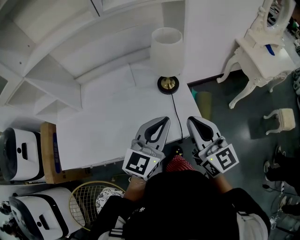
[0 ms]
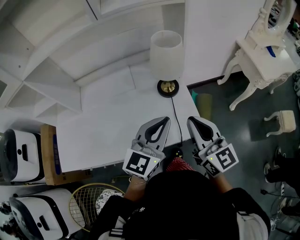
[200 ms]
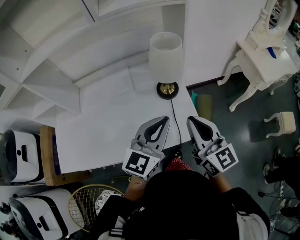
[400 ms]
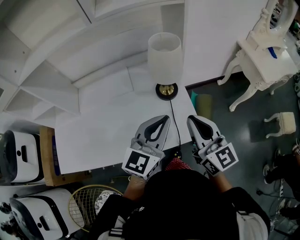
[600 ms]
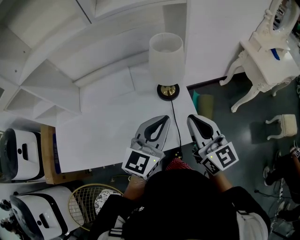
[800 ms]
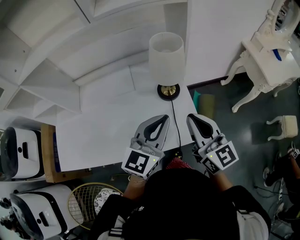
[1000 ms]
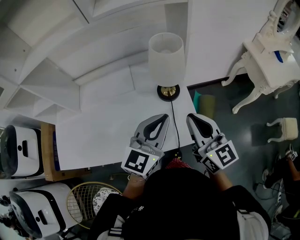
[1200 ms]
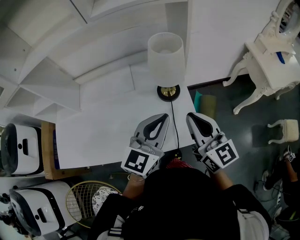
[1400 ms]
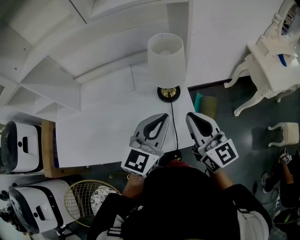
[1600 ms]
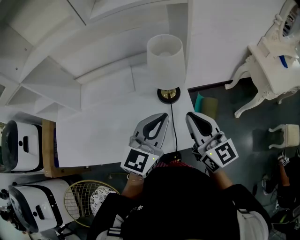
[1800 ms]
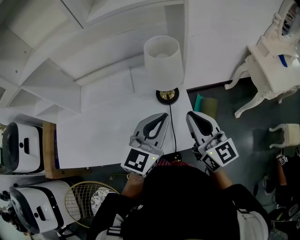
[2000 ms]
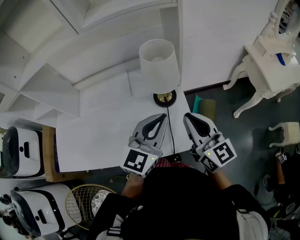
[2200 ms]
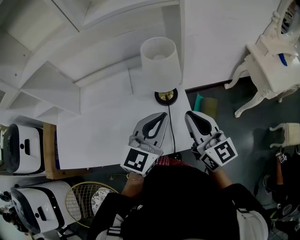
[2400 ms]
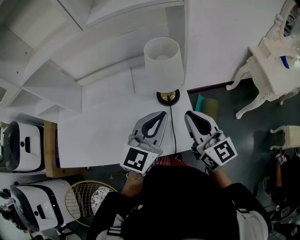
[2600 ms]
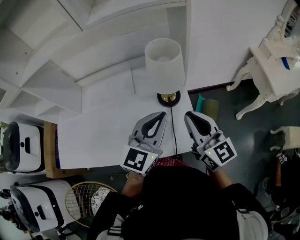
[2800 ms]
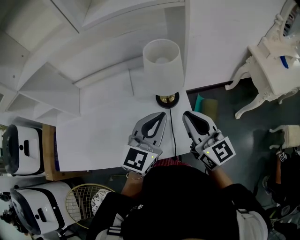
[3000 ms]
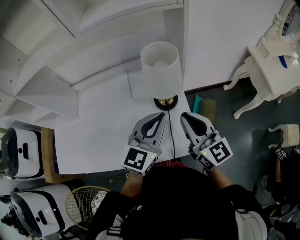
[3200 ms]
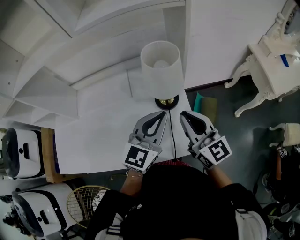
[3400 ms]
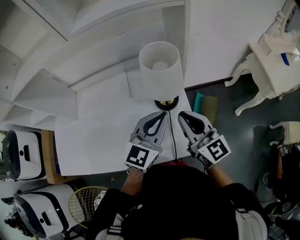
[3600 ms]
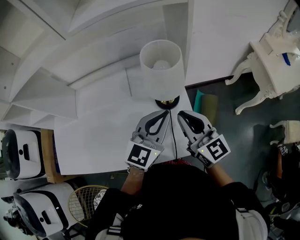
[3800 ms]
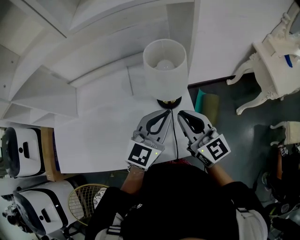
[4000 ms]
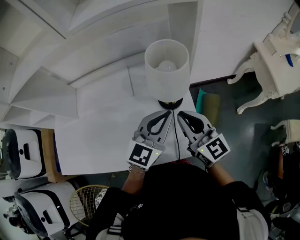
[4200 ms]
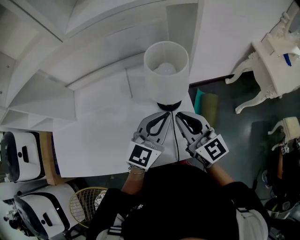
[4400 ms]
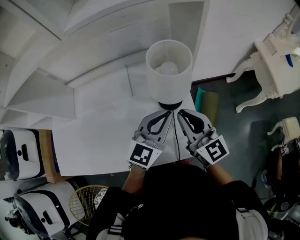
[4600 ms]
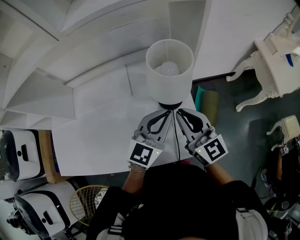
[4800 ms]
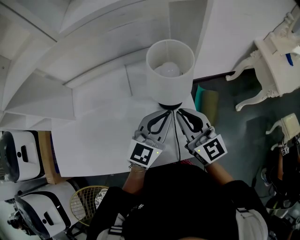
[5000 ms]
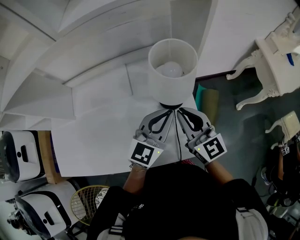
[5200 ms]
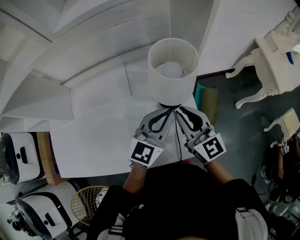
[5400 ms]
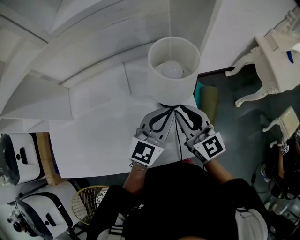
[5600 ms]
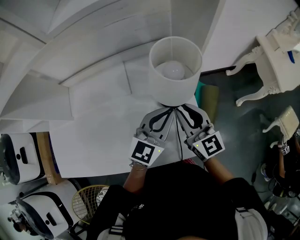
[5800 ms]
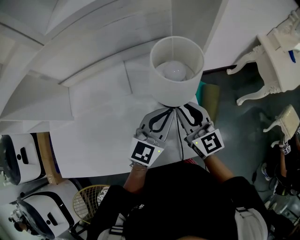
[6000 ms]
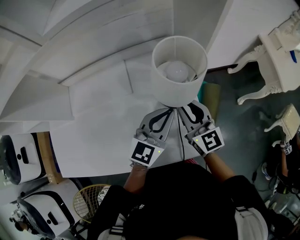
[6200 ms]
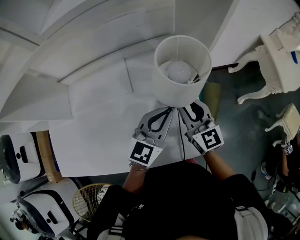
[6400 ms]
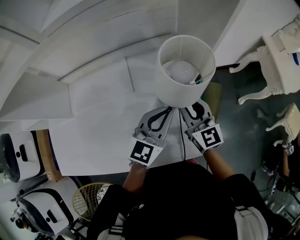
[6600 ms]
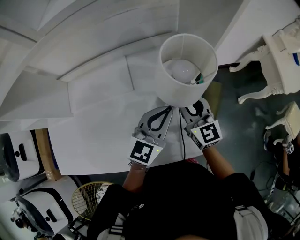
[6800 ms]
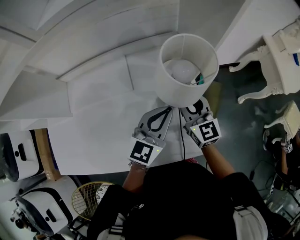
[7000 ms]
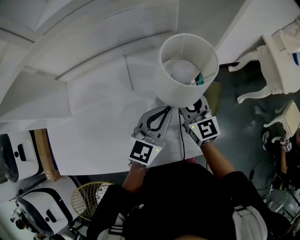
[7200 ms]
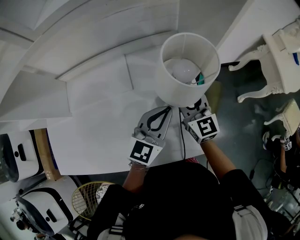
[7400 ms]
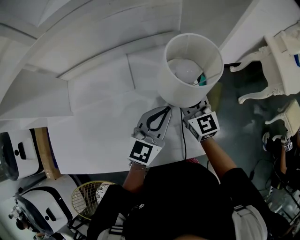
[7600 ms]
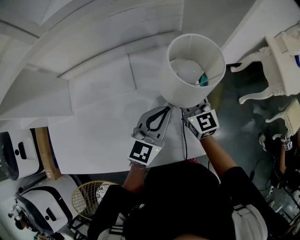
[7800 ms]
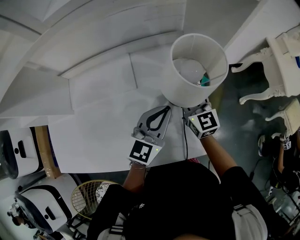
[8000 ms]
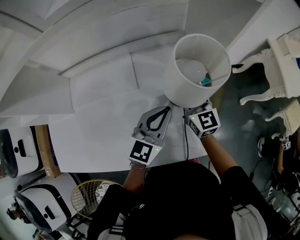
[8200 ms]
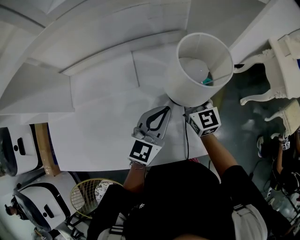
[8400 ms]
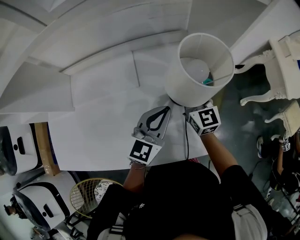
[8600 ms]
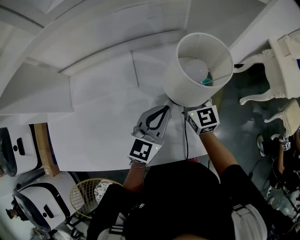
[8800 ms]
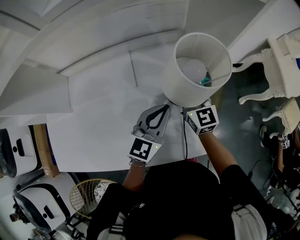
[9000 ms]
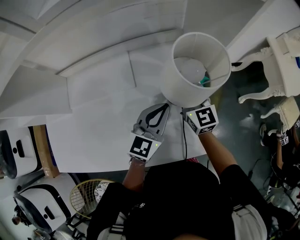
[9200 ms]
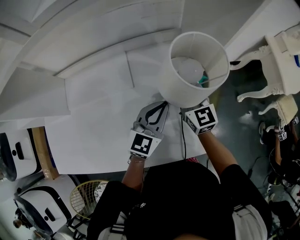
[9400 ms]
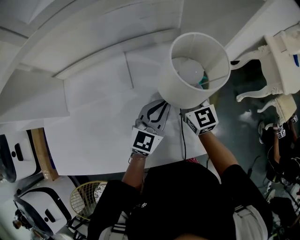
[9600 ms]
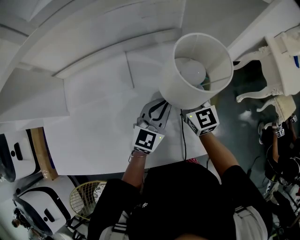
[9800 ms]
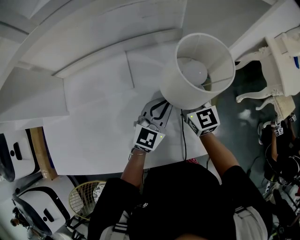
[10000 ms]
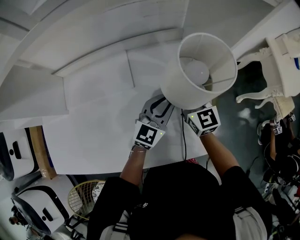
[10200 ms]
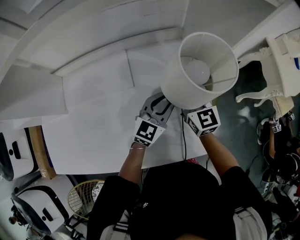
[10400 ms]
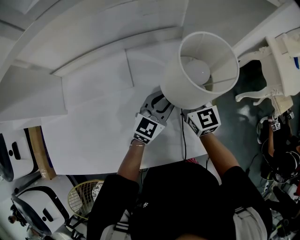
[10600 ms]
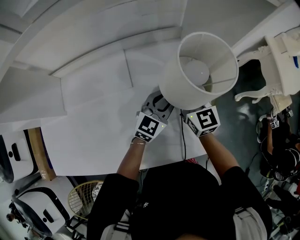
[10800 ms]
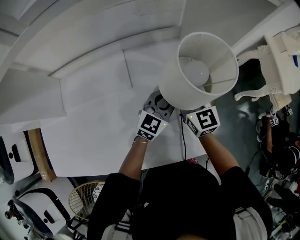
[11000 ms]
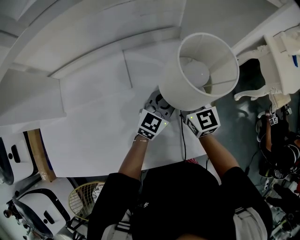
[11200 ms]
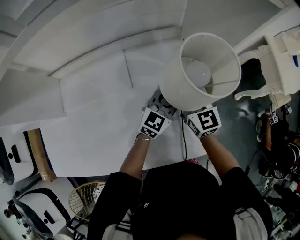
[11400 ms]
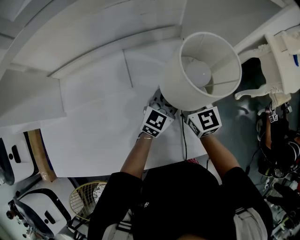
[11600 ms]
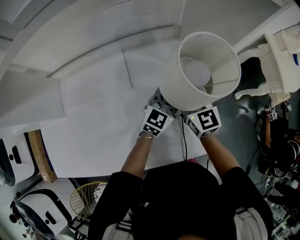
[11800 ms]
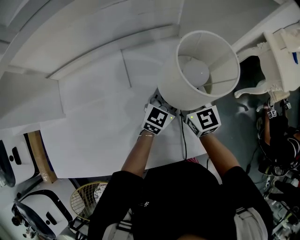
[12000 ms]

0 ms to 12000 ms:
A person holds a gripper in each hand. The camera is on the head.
0 ms to 1600 ms: The two grippers go some 10 cm forward.
1600 ms to 3000 ms: There are only small adjustments of the grippers.
3000 ms to 4400 ms: The left gripper shifts approximately 5 cm forward, while the right gripper moves some 5 cm.
4400 ms to 6000 ms: The right gripper heads downward, covering roughly 5 cm.
6000 ms to 7600 ms: The right gripper moves forward and downward, about 10 cm.
7600 ms to 9000 ms: The grippers move only a little.
9000 ms to 10400 ms: The left gripper shifts about 5 cm downward.
10400 ms to 12000 ms: The left gripper moves roughly 5 cm.

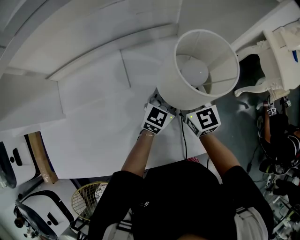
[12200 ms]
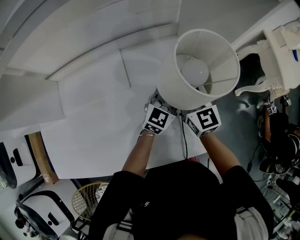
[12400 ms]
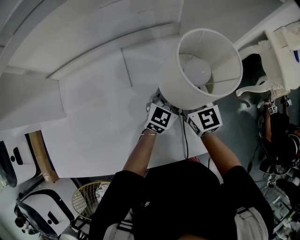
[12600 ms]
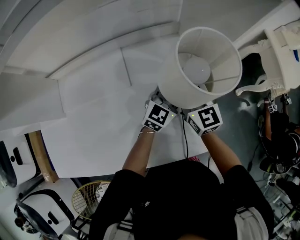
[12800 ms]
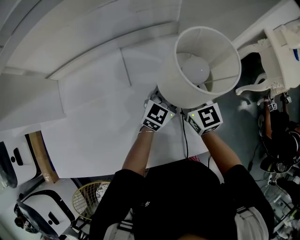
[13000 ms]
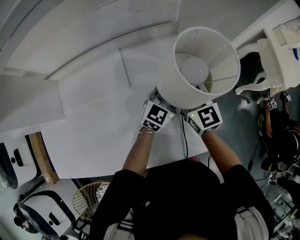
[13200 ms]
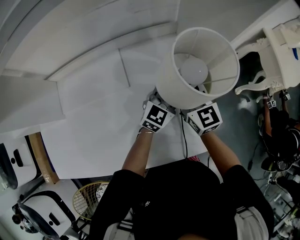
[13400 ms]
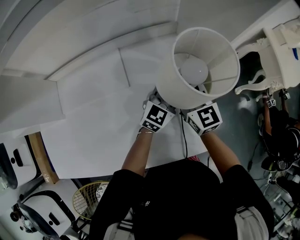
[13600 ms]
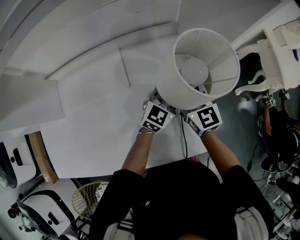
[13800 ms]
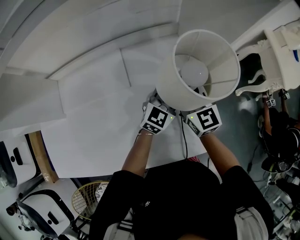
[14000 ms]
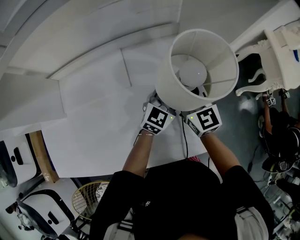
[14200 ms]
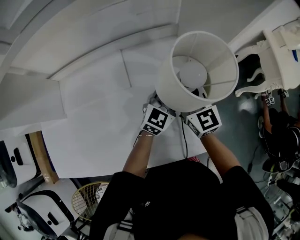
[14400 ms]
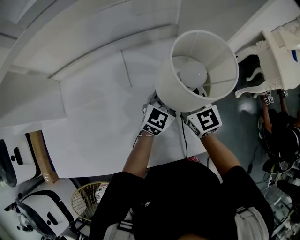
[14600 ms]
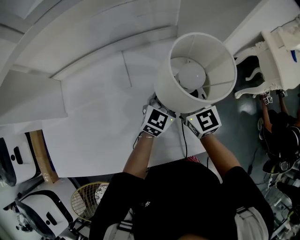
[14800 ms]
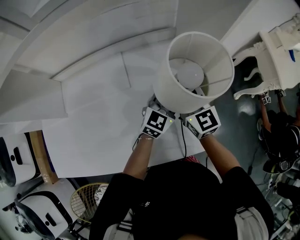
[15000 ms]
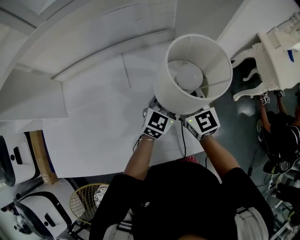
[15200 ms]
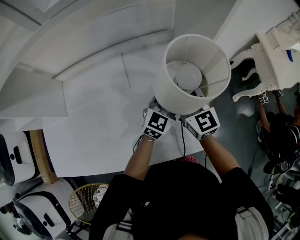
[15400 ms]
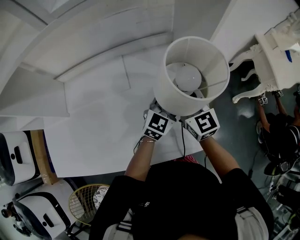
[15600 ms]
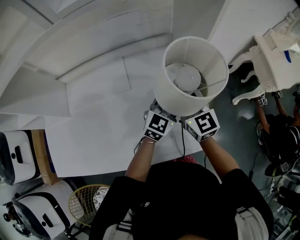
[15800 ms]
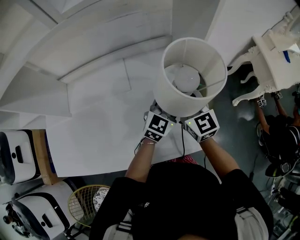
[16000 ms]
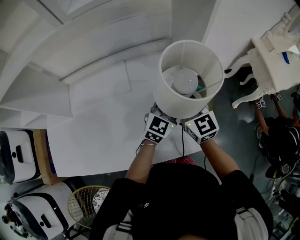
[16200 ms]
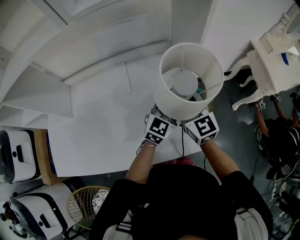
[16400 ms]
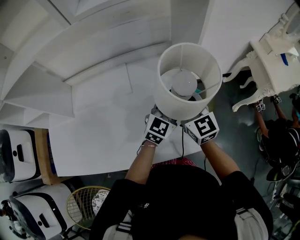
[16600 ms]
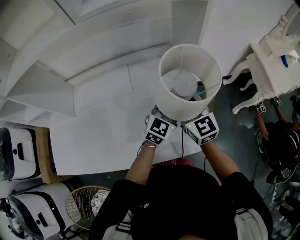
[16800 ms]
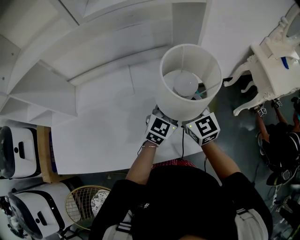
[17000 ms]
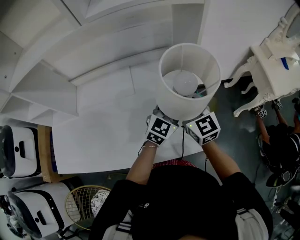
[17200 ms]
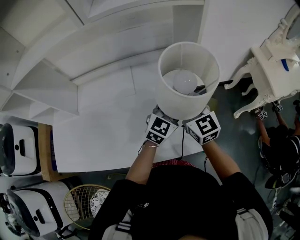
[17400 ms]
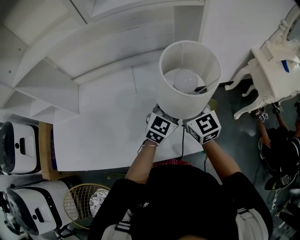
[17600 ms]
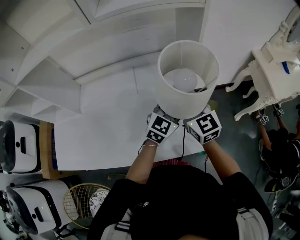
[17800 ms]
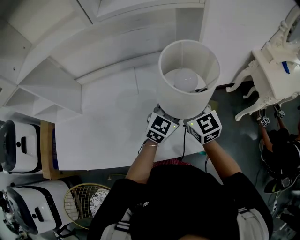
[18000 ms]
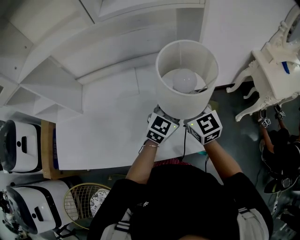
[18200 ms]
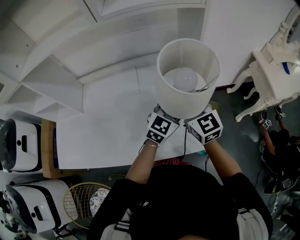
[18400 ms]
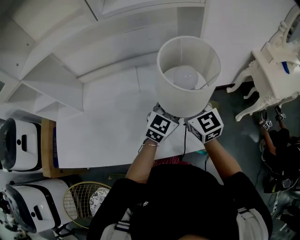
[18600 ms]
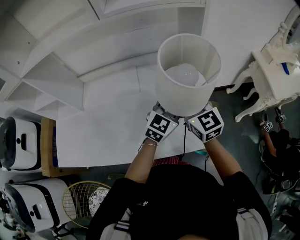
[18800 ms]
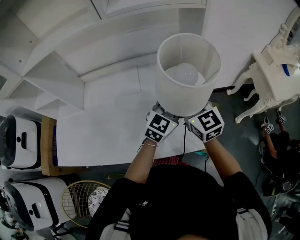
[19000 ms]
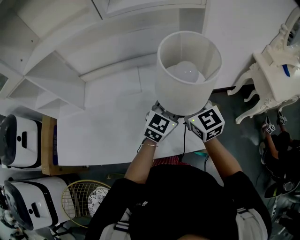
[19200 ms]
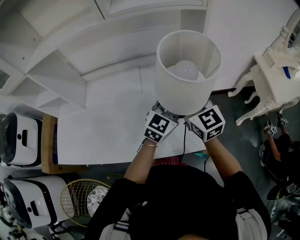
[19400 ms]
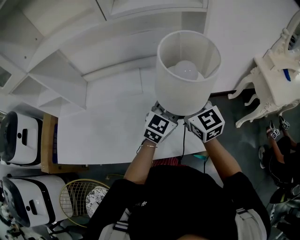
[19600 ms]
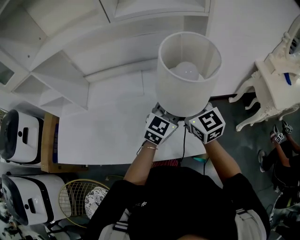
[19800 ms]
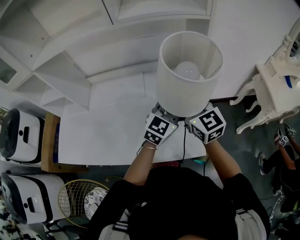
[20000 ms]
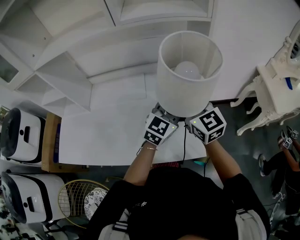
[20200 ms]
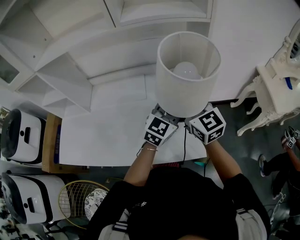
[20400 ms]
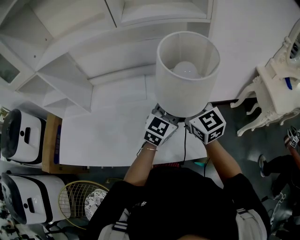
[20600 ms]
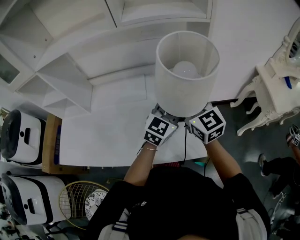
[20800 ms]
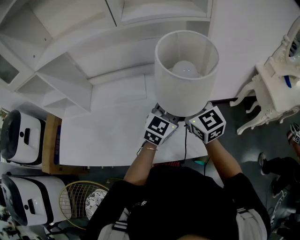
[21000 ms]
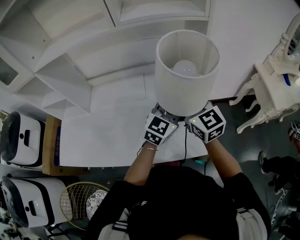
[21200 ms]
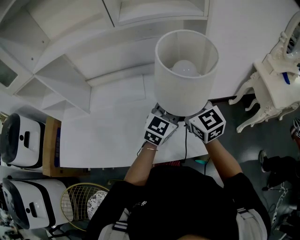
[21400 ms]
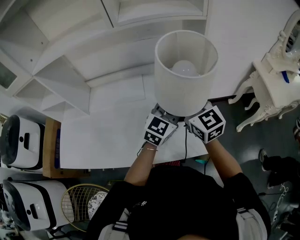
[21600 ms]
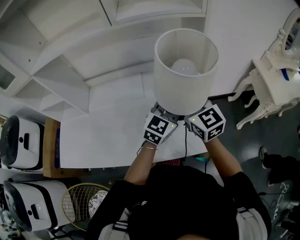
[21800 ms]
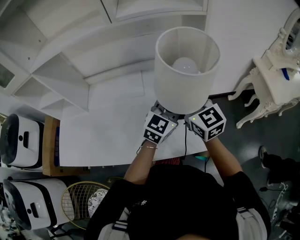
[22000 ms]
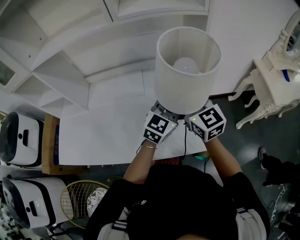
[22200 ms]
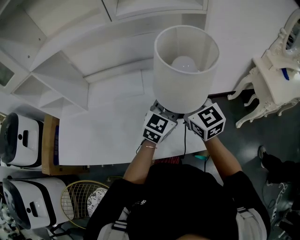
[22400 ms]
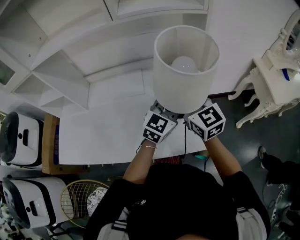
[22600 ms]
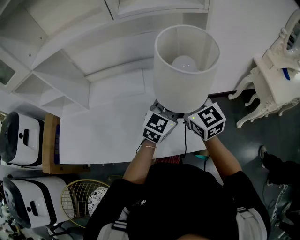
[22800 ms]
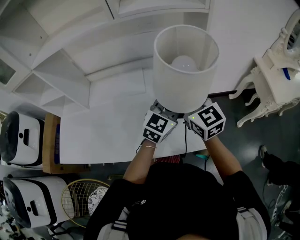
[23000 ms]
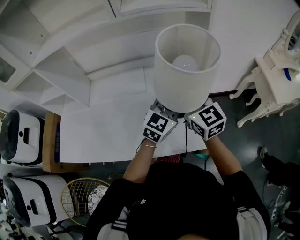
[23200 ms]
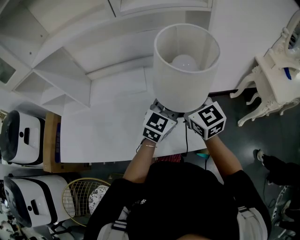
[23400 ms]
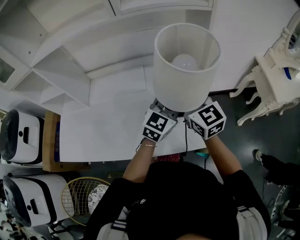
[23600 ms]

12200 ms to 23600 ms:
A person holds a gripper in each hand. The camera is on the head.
12200 ms to 13600 ms: Both grippers stay about where they are.
13600 ms to 15000 ms: The grippers move only a little.
15000 ms to 16400 ms: The right gripper ends up roughly 5 cm from where it was. The left gripper moves approximately 5 cm.
16400 ms to 17800 ms: There are only small adjustments of the grippers.
17800 ms to 19400 ms: There are only small adjustments of the grippers.
19400 ms to 20800 ms: The grippers stay close to where they were, moving slightly.
20800 ms to 22200 ms: Both grippers stay about where they are.
22200 ms to 23600 ms: The grippers move only a little.

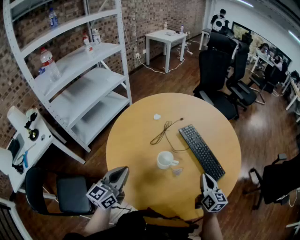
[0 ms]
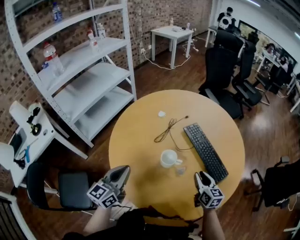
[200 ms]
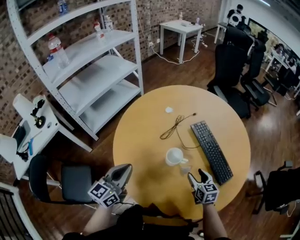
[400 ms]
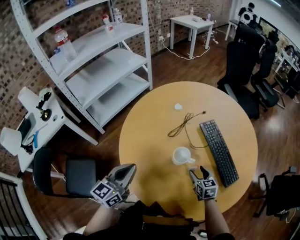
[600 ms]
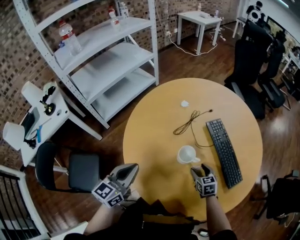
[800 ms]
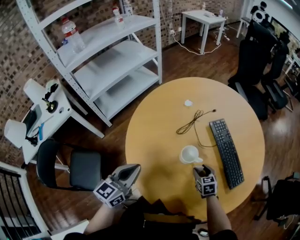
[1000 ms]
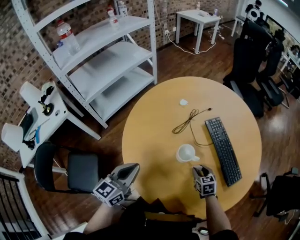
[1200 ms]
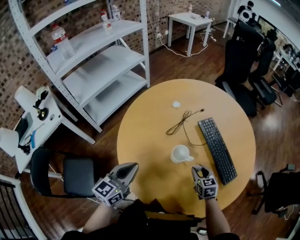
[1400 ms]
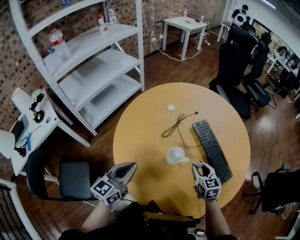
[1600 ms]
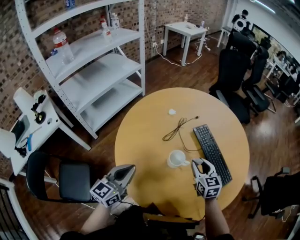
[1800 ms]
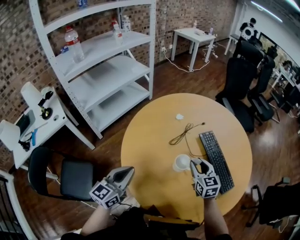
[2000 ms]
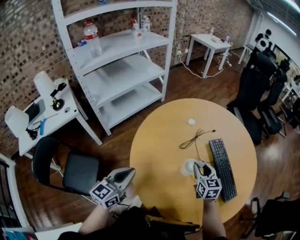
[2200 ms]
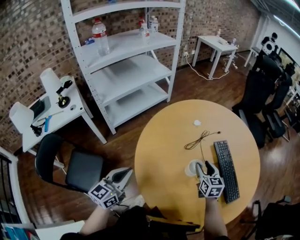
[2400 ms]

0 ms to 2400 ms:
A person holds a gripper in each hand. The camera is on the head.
0 ms to 1200 ms: The right gripper is displaced downward and to the left by approximately 20 cm, tilts its fingers some 30 degrees downward, and opens.
1200 ms to 2400 ms: The right gripper moves upward, forward and to the left, approximately 15 cm, and changes its angle by roughly 20 degrees. Meanwhile the left gripper heads to the left, covering approximately 10 cm.
